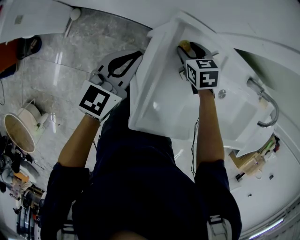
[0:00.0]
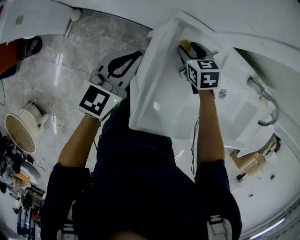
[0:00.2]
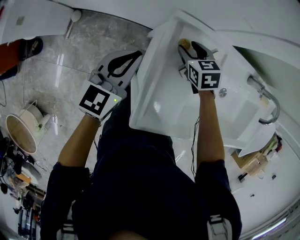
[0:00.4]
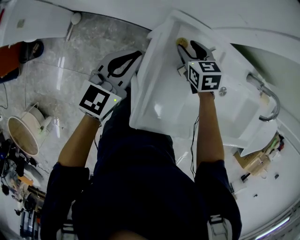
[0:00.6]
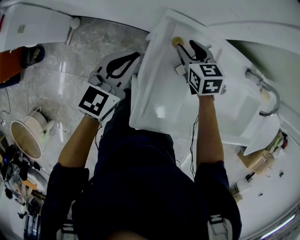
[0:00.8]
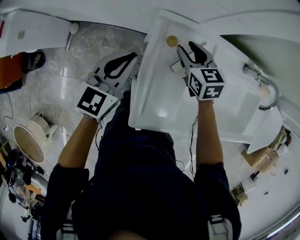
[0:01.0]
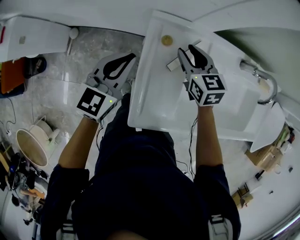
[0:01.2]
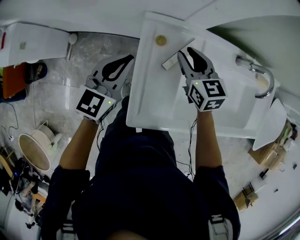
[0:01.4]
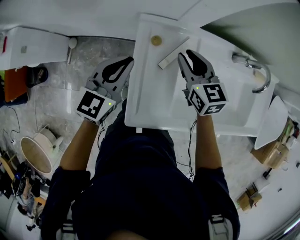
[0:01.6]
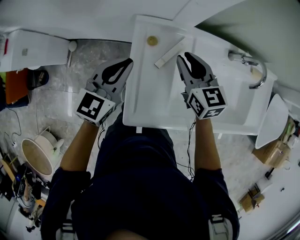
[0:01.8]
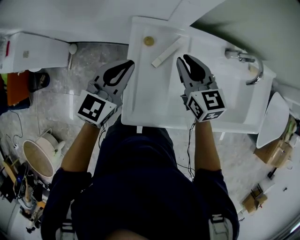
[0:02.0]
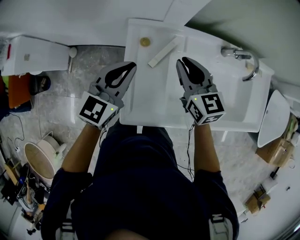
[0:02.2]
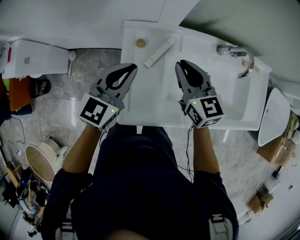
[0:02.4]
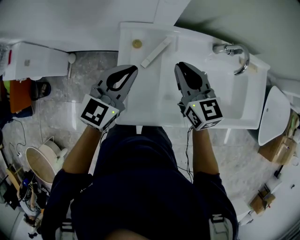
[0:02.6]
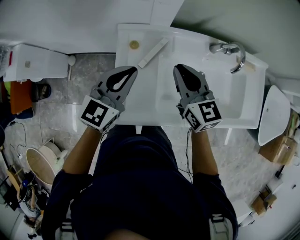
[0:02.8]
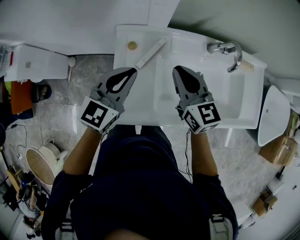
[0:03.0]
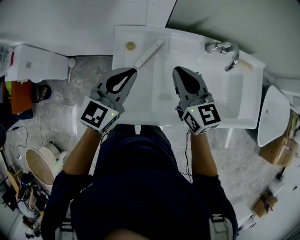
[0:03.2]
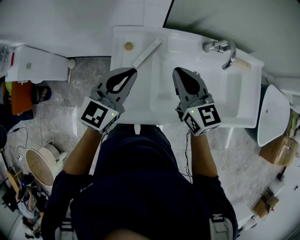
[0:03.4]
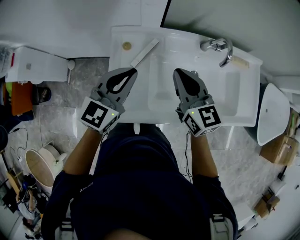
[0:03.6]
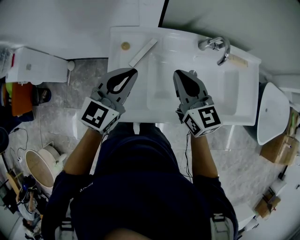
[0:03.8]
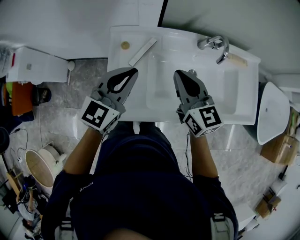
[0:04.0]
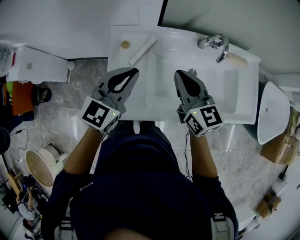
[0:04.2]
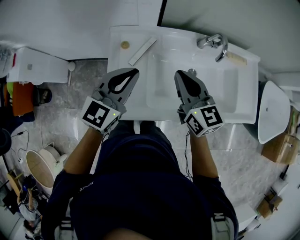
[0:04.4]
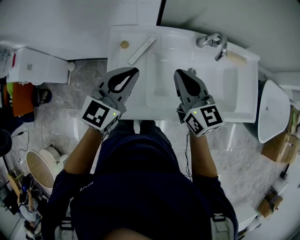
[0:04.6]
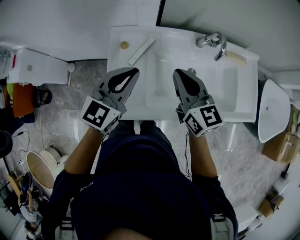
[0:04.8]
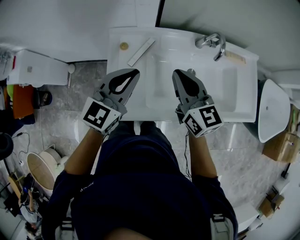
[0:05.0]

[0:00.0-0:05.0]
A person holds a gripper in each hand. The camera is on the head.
0:00.0 to 0:01.6: The left gripper shifts approximately 10 cm upward and to the right; the right gripper heads upward and to the right, covering some 20 cm, tips its fingers upward by approximately 30 degrees, and closes.
0:01.6 to 0:03.4: The grippers both shift to the right, upward and backward by approximately 20 cm. The right gripper closes.
0:03.4 to 0:05.0: The right gripper moves approximately 5 cm. Meanwhile the left gripper ends up about 5 cm from where it was.

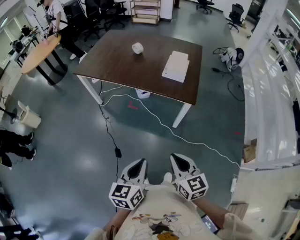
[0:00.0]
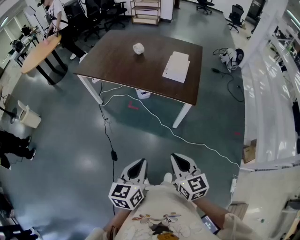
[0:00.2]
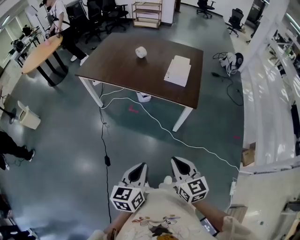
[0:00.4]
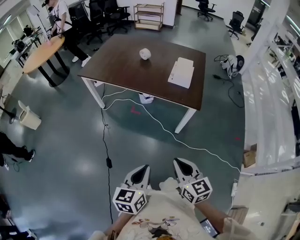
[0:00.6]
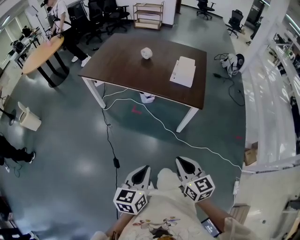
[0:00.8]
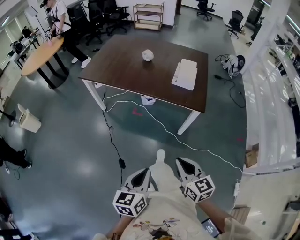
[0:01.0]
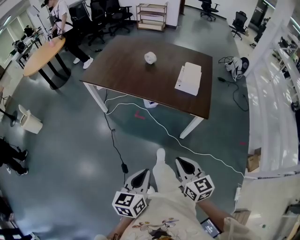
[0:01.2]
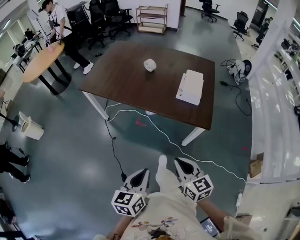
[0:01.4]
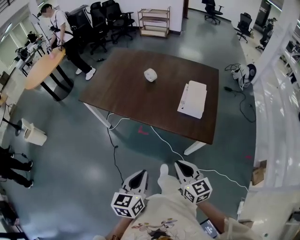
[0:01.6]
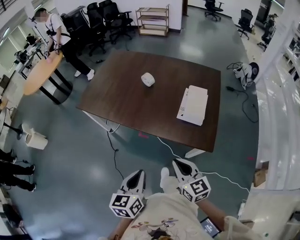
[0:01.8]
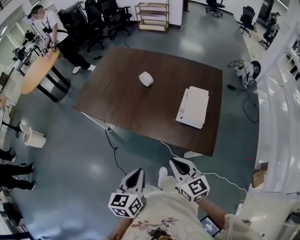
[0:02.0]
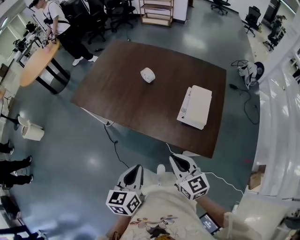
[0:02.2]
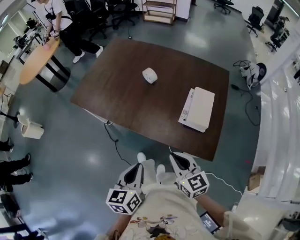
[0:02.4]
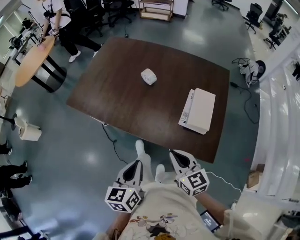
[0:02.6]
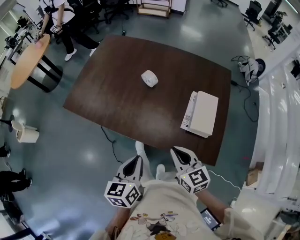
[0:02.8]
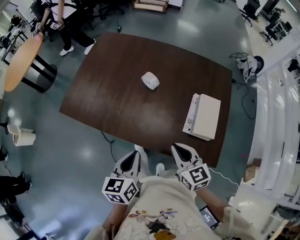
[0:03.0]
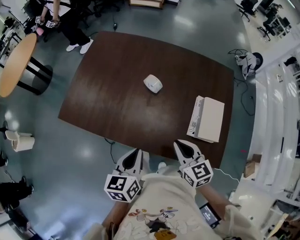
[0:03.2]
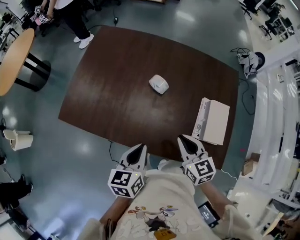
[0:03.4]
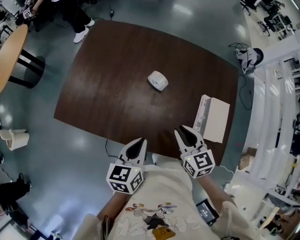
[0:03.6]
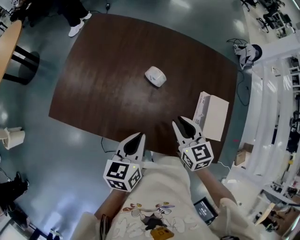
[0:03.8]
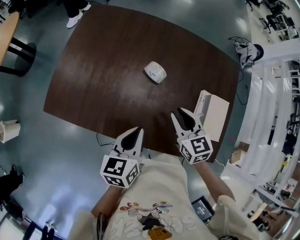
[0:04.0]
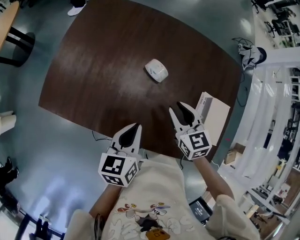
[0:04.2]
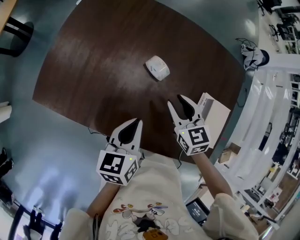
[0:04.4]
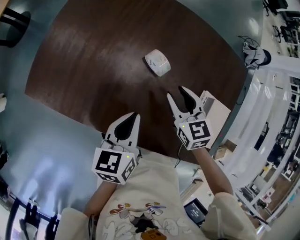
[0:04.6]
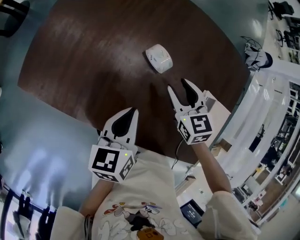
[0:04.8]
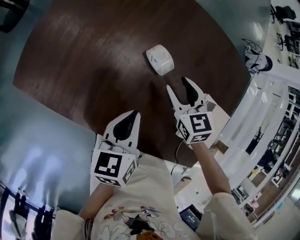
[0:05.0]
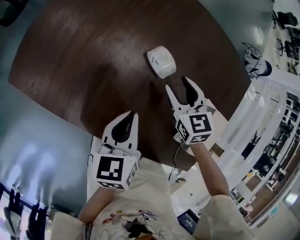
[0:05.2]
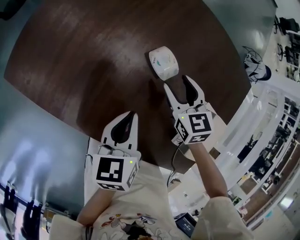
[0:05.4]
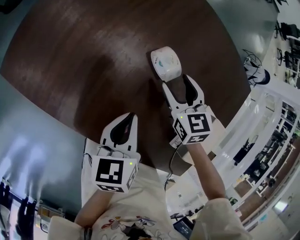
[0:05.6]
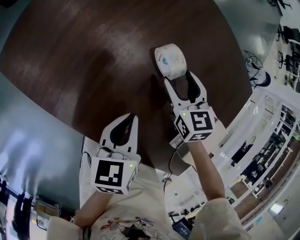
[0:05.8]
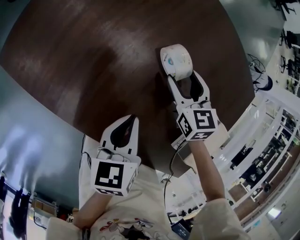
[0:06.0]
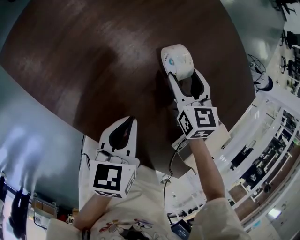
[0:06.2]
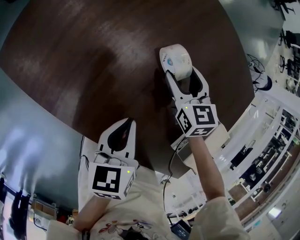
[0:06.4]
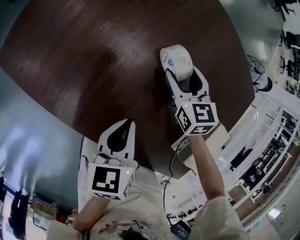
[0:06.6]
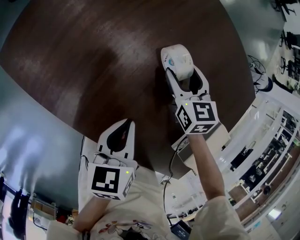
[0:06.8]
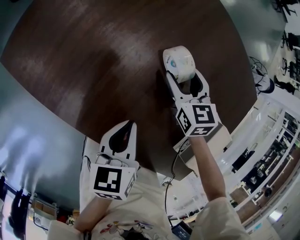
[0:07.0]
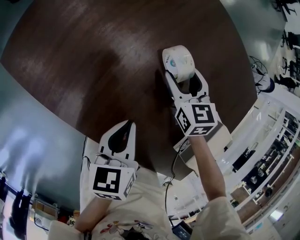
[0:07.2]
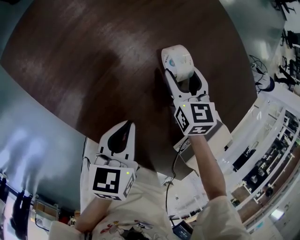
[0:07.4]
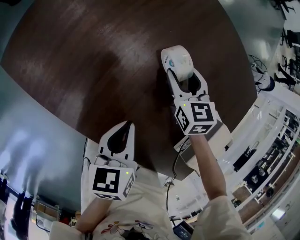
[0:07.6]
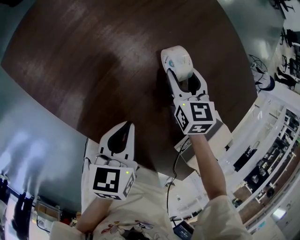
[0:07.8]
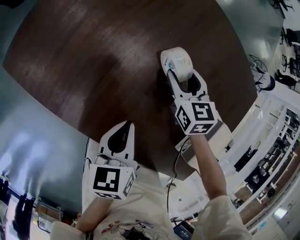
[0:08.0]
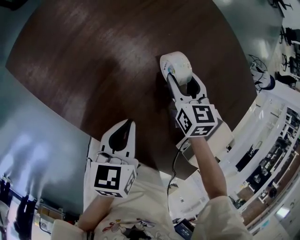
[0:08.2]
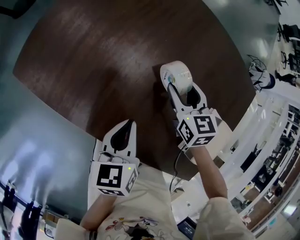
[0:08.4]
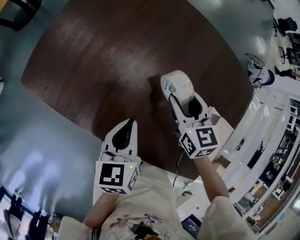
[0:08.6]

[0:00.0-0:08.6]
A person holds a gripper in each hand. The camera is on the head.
0:00.0 to 0:01.4: Both grippers travel together forward and to the left, some 20 cm.
0:01.4 to 0:02.8: The pair of grippers is taken forward, approximately 40 cm.
0:02.8 to 0:04.4: Both grippers travel together forward, about 35 cm. The right gripper opens its fingers.
0:04.4 to 0:05.8: The right gripper travels downward and forward by about 15 cm, and opens up; the left gripper moves downward, approximately 10 cm.
0:05.8 to 0:07.2: The grippers make only small movements.
0:07.2 to 0:08.6: The left gripper moves upward, some 5 cm; the right gripper is displaced upward by some 10 cm.

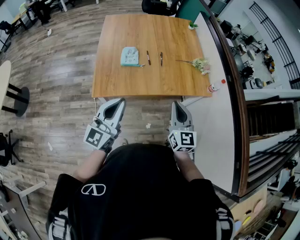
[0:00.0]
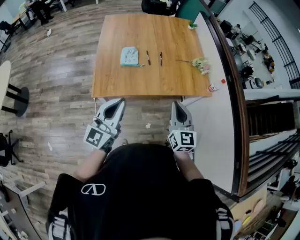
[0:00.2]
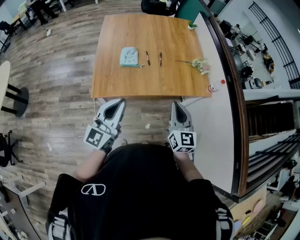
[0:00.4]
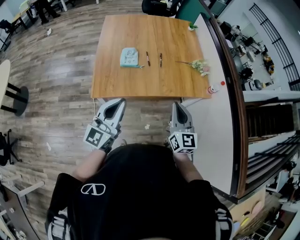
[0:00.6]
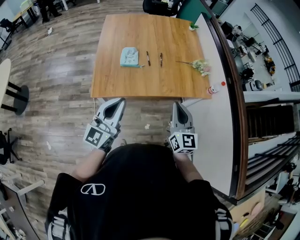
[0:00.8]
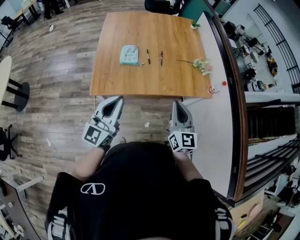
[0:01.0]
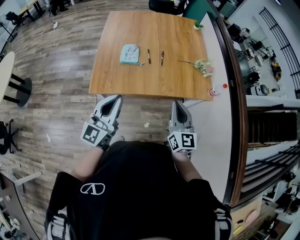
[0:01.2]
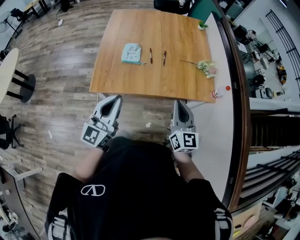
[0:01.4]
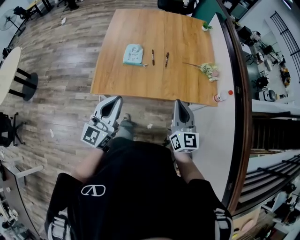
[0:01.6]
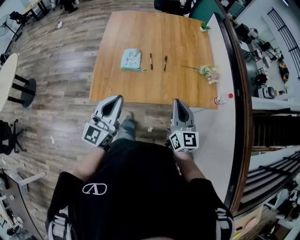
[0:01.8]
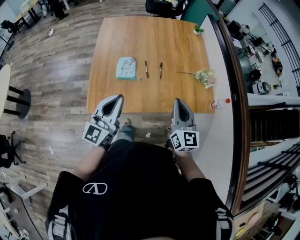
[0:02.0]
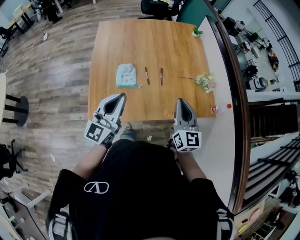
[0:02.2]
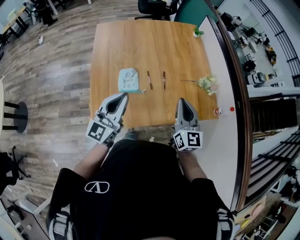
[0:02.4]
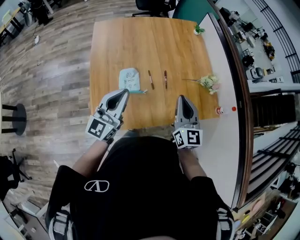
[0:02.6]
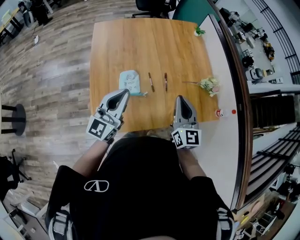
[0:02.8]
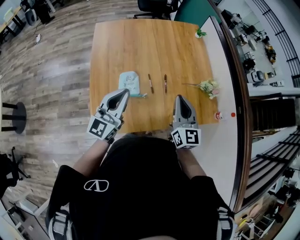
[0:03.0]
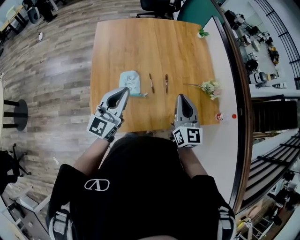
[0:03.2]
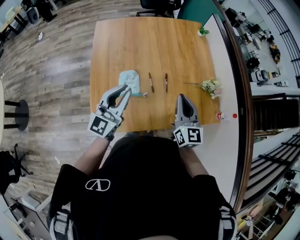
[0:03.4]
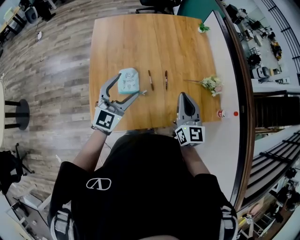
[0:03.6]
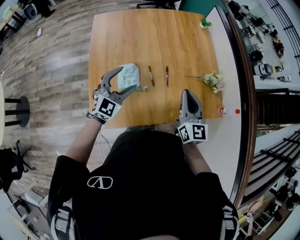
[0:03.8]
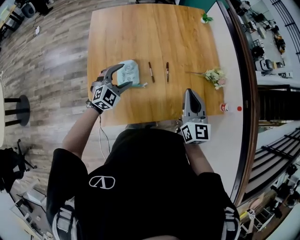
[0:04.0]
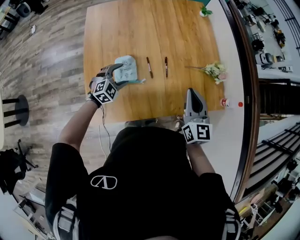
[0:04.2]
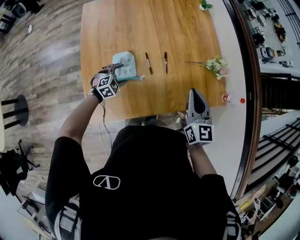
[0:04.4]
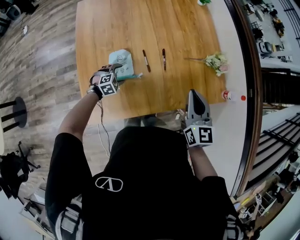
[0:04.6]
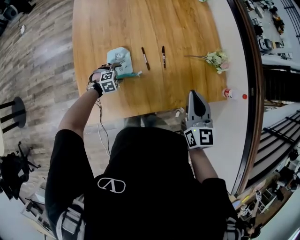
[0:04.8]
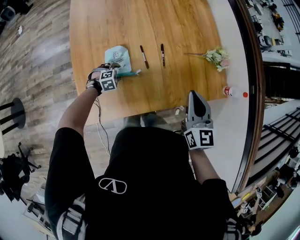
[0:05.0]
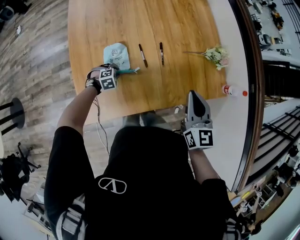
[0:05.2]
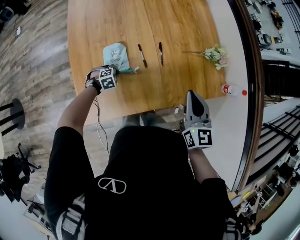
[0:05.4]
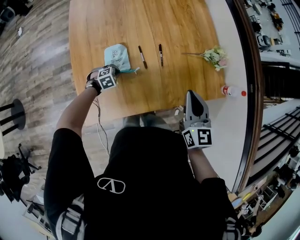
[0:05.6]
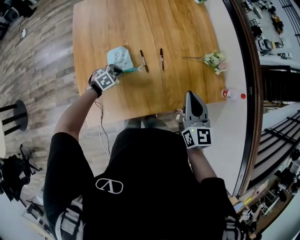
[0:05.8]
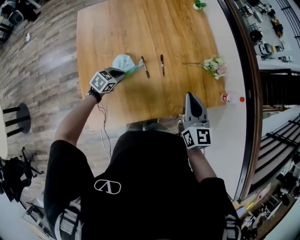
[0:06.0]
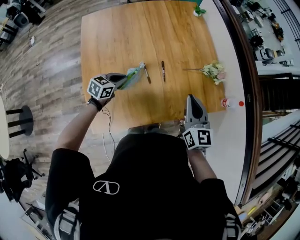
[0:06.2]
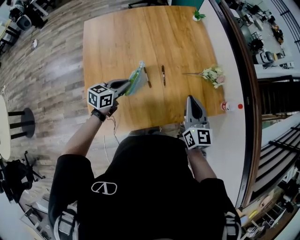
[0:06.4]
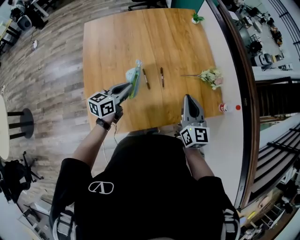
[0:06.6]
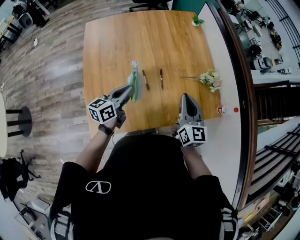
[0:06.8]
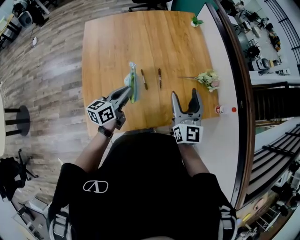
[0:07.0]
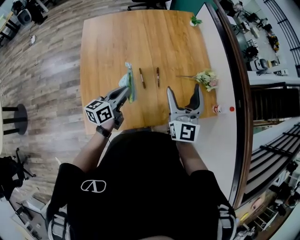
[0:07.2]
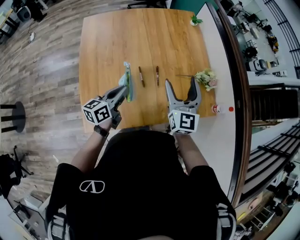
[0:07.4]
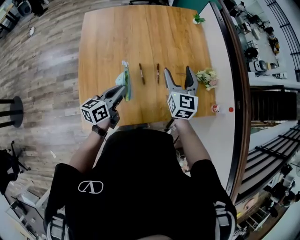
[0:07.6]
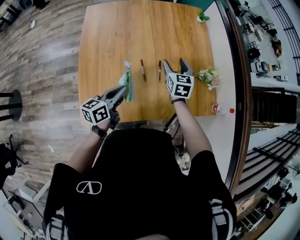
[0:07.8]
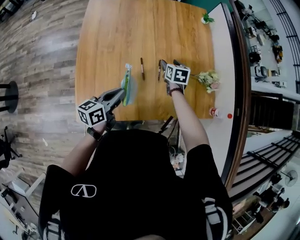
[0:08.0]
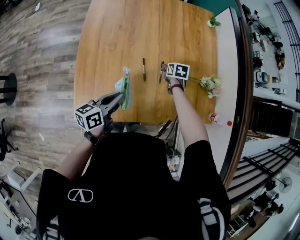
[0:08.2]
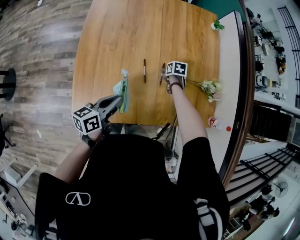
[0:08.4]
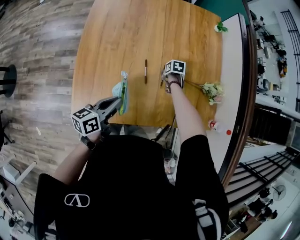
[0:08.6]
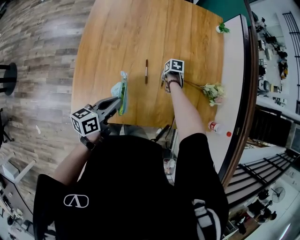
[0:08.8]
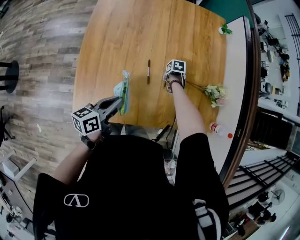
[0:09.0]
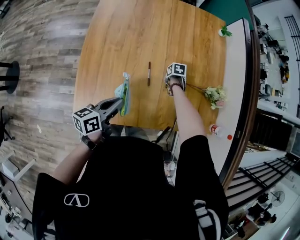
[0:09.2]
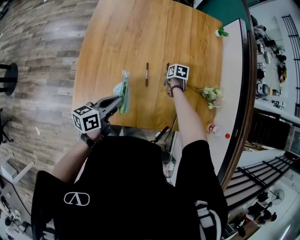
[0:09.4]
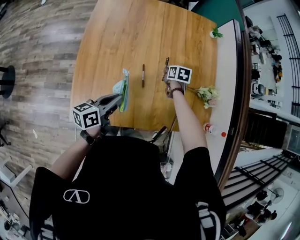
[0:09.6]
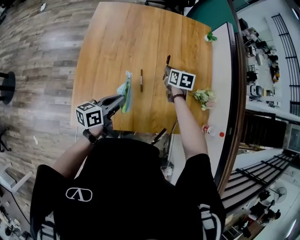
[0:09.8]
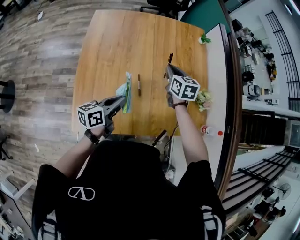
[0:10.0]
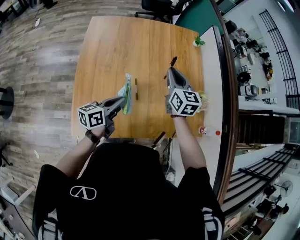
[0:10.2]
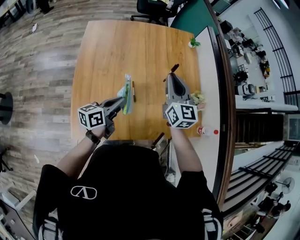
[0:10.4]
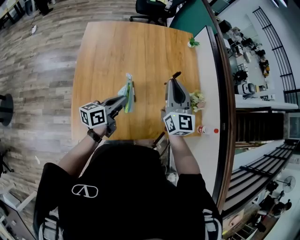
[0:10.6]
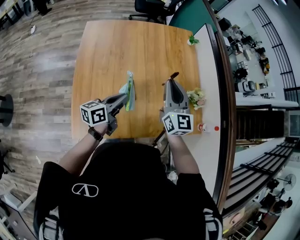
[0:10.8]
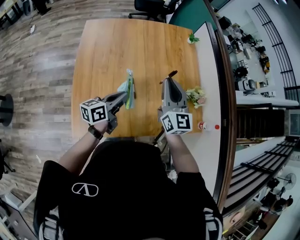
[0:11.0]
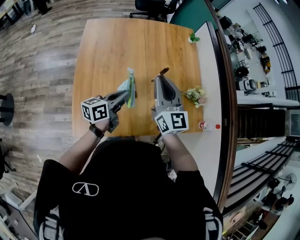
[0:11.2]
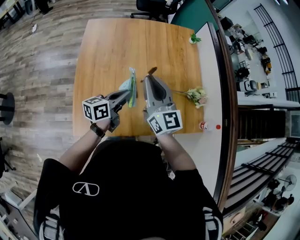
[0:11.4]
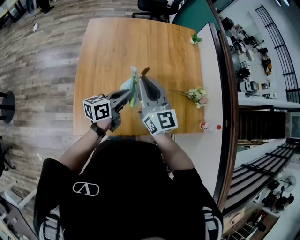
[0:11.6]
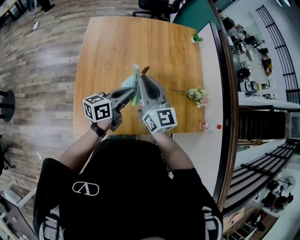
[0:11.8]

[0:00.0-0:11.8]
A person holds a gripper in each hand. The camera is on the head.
0:00.0 to 0:01.4: The right gripper goes some 10 cm forward and to the right, while the left gripper ends up approximately 5 cm from where it was.
0:01.4 to 0:03.0: The two grippers go about 35 cm forward and to the left.
0:03.0 to 0:04.4: The right gripper heads to the right and downward, covering approximately 10 cm. The left gripper is displaced downward by approximately 35 cm, tilts its fingers some 60 degrees downward, and opens up.
0:04.4 to 0:06.0: The left gripper travels downward and back again, some 10 cm each way, rotates approximately 30 degrees, and closes up.
0:06.0 to 0:07.4: The right gripper travels upward and forward by some 10 cm, and opens its fingers. Meanwhile the left gripper moves upward, about 20 cm, and tips its fingers upward by approximately 40 degrees.
0:07.4 to 0:08.8: The right gripper moves downward, about 40 cm, points its fingers approximately 80 degrees further downward, and closes; the left gripper moves downward, approximately 5 cm.
0:08.8 to 0:10.4: The left gripper heads upward, covering approximately 10 cm. Meanwhile the right gripper is displaced upward by approximately 50 cm, and points its fingers roughly 70 degrees further upward.
0:10.4 to 0:11.8: The right gripper travels to the left and backward by approximately 15 cm.